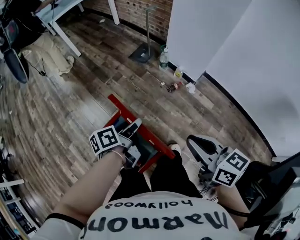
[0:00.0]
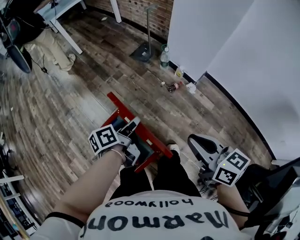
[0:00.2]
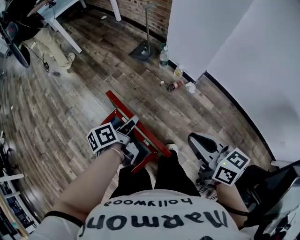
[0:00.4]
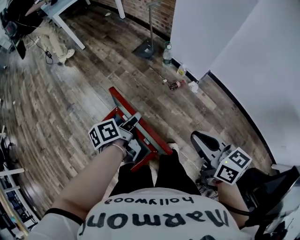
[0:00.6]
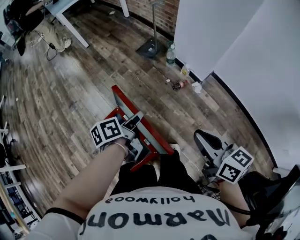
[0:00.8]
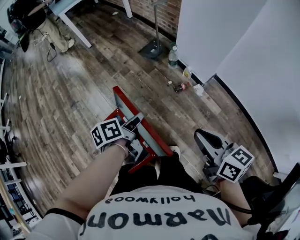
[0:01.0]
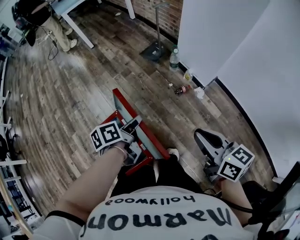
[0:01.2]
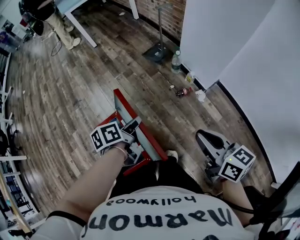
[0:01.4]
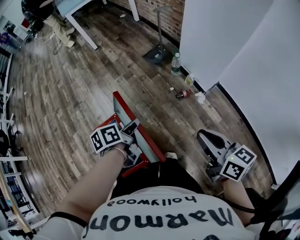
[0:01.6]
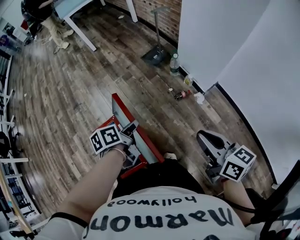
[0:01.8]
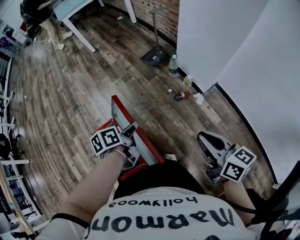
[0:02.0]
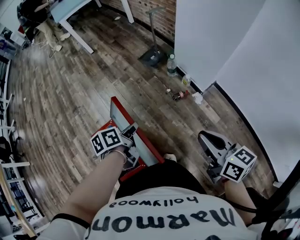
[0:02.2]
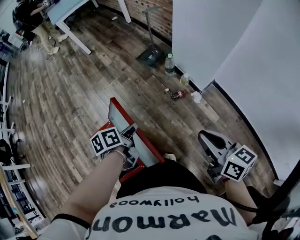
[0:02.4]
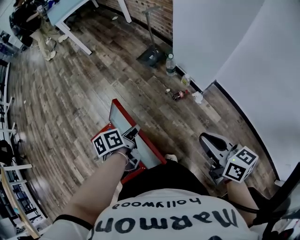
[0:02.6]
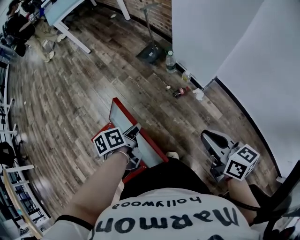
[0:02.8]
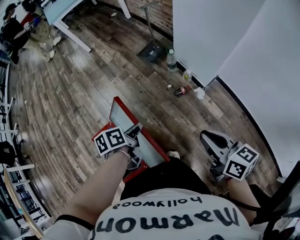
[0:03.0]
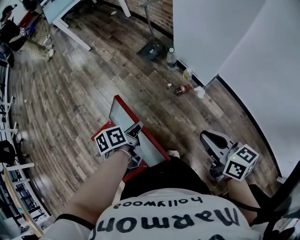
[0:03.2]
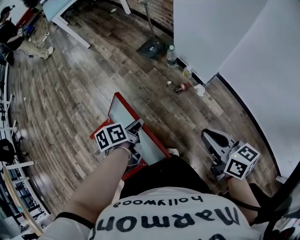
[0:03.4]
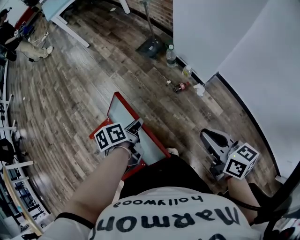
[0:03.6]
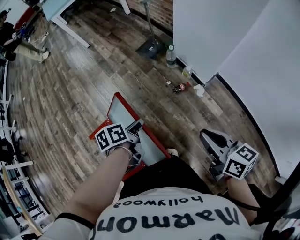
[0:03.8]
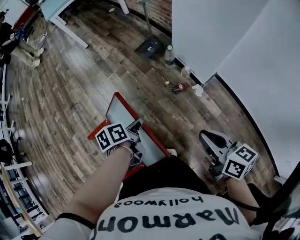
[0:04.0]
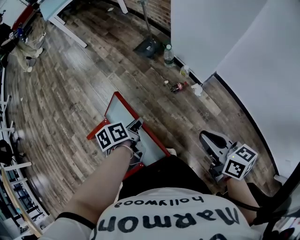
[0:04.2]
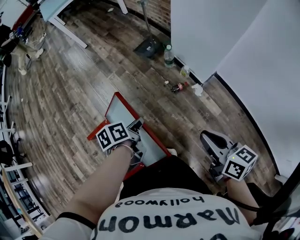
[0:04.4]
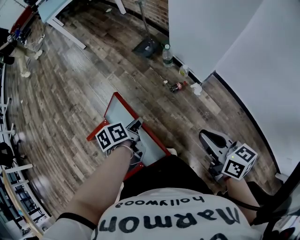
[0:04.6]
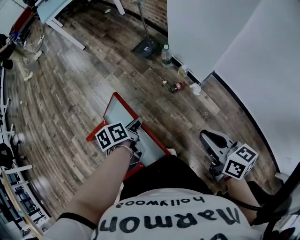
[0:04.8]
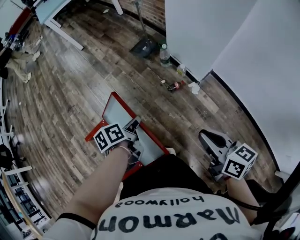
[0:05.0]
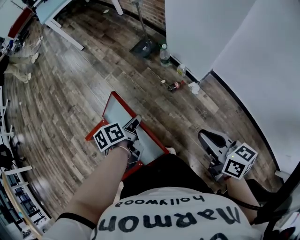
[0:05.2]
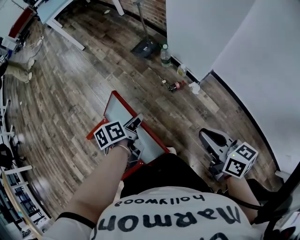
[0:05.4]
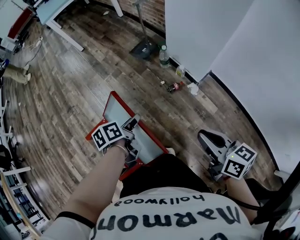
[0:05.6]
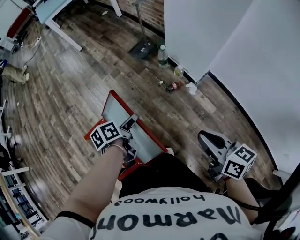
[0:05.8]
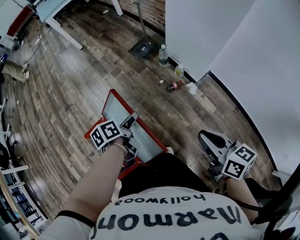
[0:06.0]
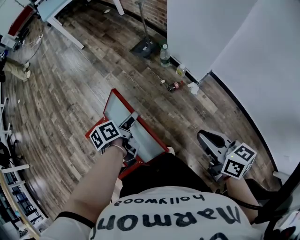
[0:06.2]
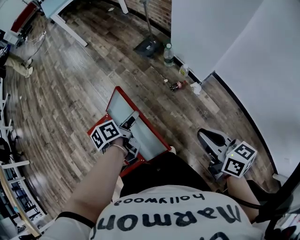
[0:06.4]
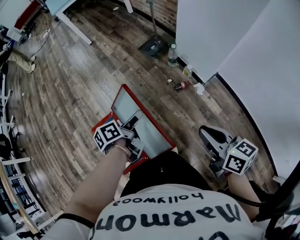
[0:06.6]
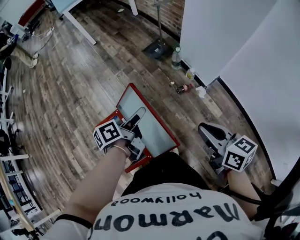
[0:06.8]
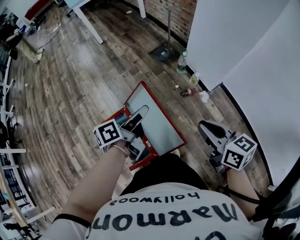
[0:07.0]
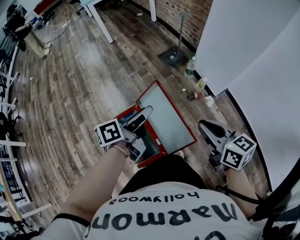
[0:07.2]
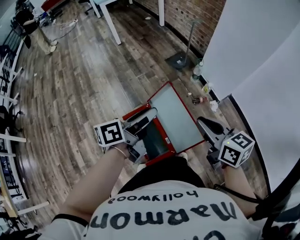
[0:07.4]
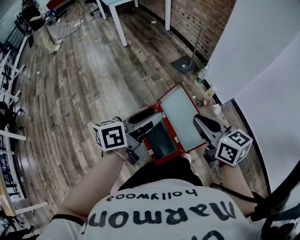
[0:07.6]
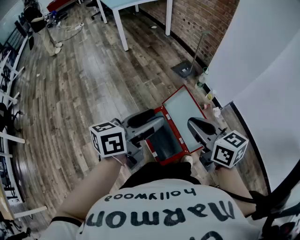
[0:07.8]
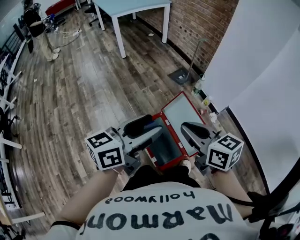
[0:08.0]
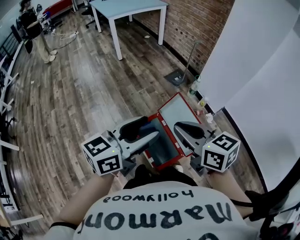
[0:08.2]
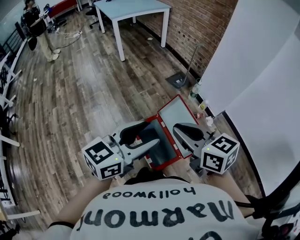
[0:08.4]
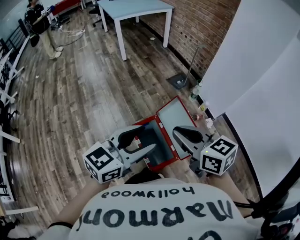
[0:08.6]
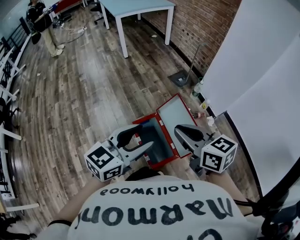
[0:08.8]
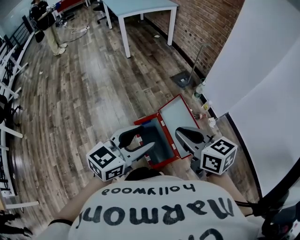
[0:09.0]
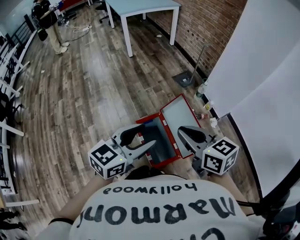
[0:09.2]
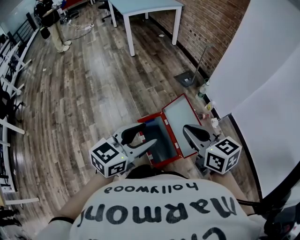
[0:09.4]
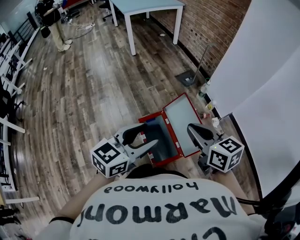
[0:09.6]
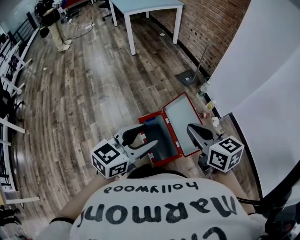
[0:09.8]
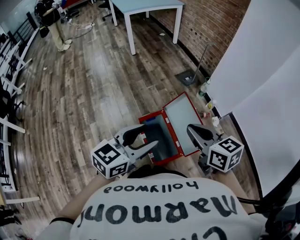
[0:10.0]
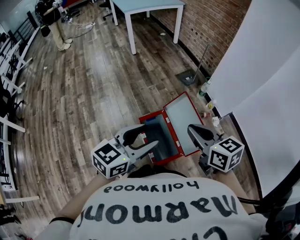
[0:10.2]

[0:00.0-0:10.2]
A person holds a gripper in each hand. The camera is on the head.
0:00.0 to 0:01.4: The left gripper heads to the right, covering some 5 cm. The right gripper heads to the right and forward, covering approximately 15 cm.
0:01.4 to 0:03.0: The left gripper moves approximately 5 cm. Meanwhile the right gripper travels to the right by approximately 5 cm.
0:03.0 to 0:04.4: The grippers move only a little.
0:04.4 to 0:05.8: The left gripper opens.
0:05.8 to 0:07.2: The right gripper is displaced to the left and upward by roughly 15 cm. Meanwhile the left gripper shifts approximately 20 cm upward and to the left, and tips its fingers upward by approximately 40 degrees.
0:07.2 to 0:08.8: The left gripper moves backward, to the left and upward, some 25 cm, and rolls clockwise, seen from behind, by some 60 degrees. Meanwhile the right gripper travels to the left and upward by some 25 cm.
0:08.8 to 0:10.2: The grippers make only small movements.

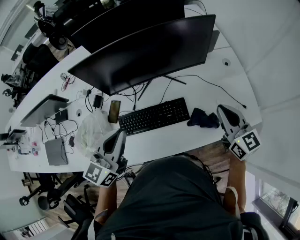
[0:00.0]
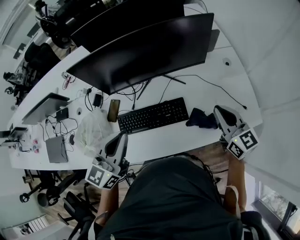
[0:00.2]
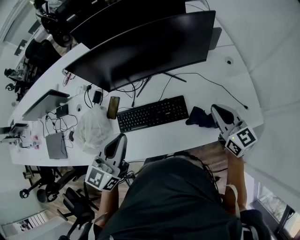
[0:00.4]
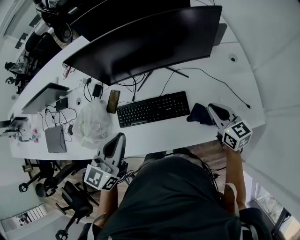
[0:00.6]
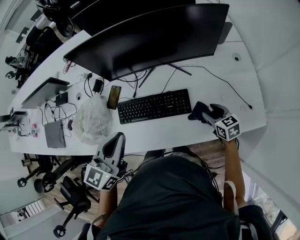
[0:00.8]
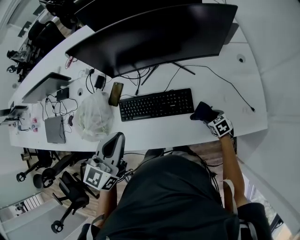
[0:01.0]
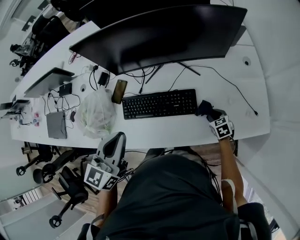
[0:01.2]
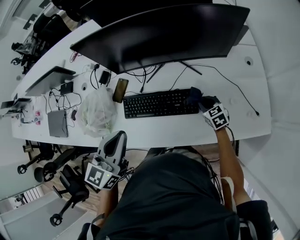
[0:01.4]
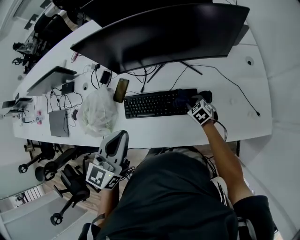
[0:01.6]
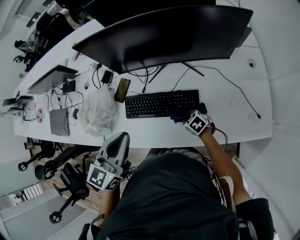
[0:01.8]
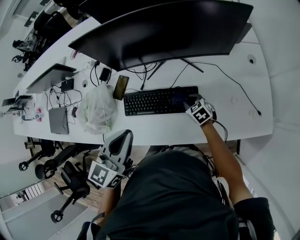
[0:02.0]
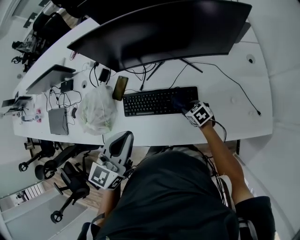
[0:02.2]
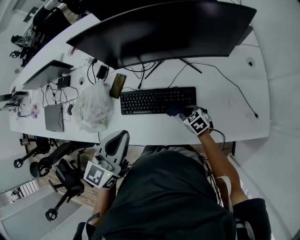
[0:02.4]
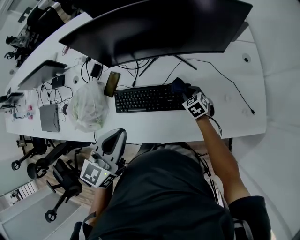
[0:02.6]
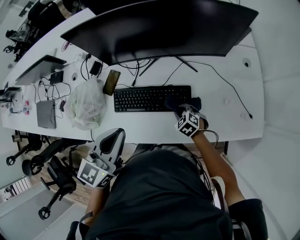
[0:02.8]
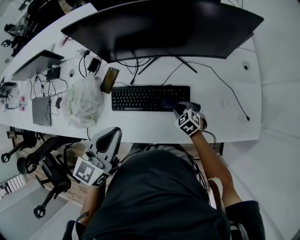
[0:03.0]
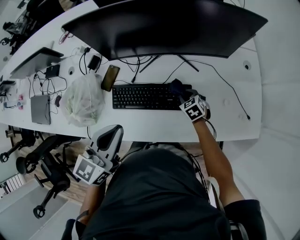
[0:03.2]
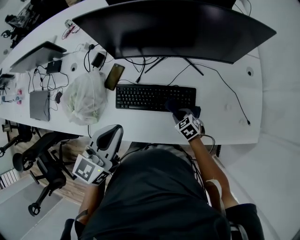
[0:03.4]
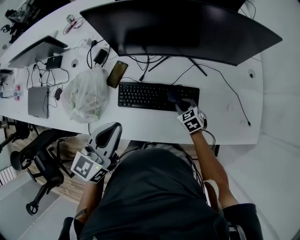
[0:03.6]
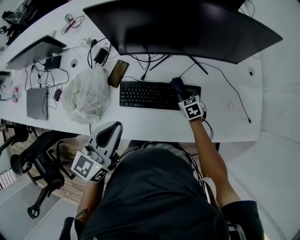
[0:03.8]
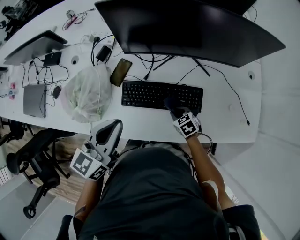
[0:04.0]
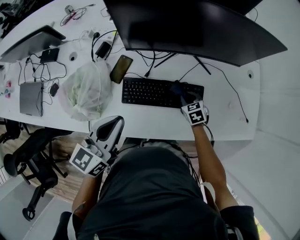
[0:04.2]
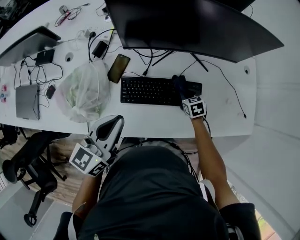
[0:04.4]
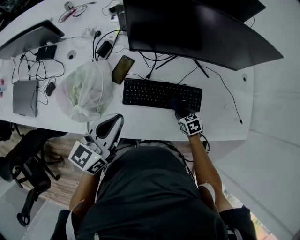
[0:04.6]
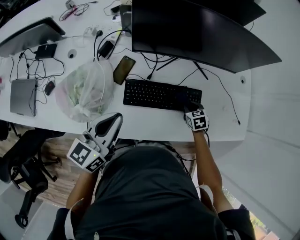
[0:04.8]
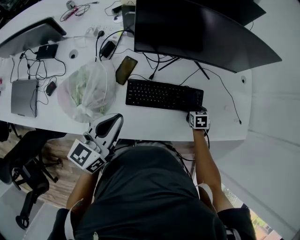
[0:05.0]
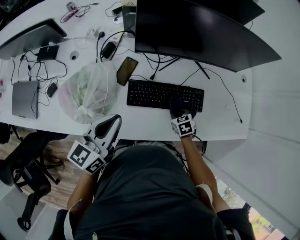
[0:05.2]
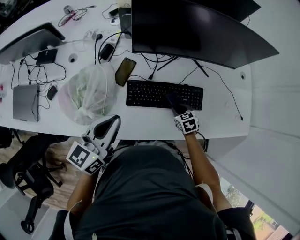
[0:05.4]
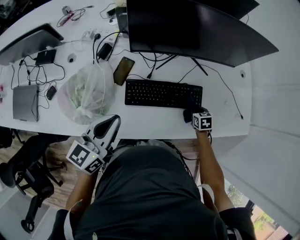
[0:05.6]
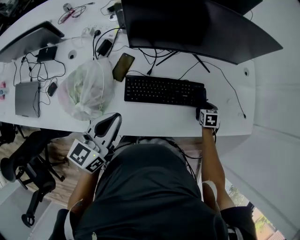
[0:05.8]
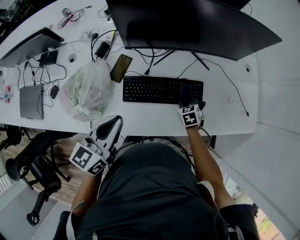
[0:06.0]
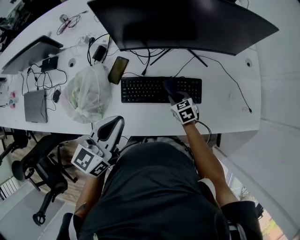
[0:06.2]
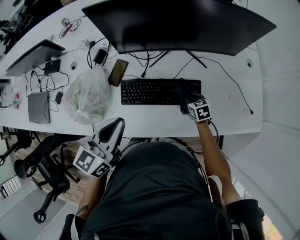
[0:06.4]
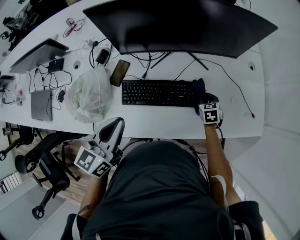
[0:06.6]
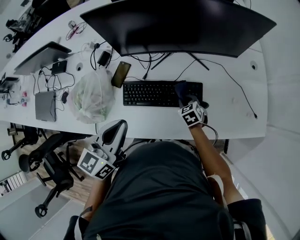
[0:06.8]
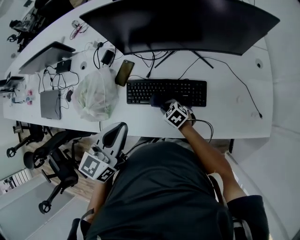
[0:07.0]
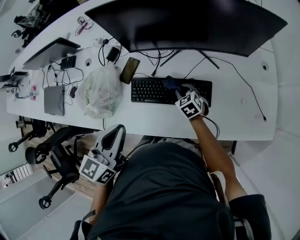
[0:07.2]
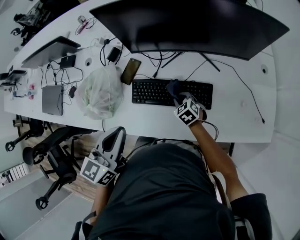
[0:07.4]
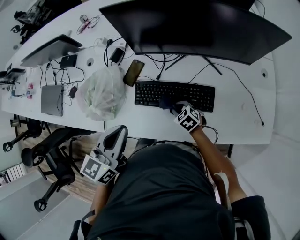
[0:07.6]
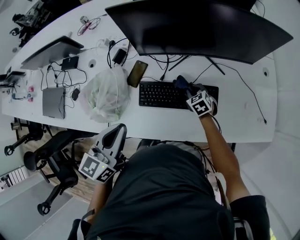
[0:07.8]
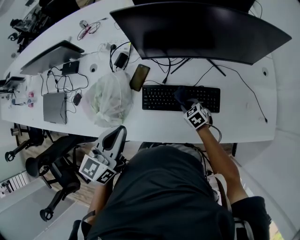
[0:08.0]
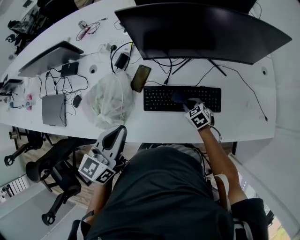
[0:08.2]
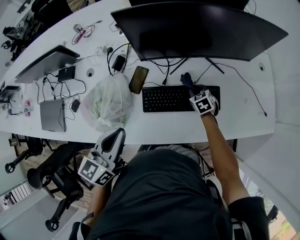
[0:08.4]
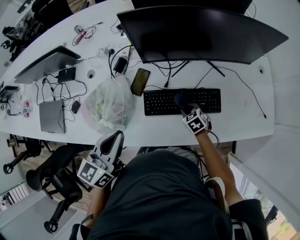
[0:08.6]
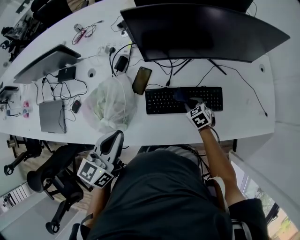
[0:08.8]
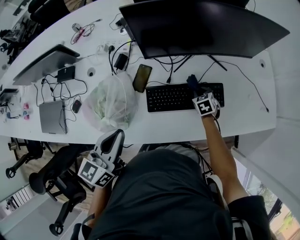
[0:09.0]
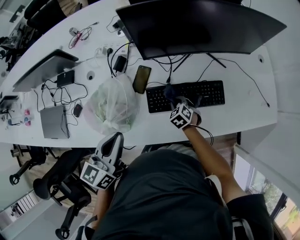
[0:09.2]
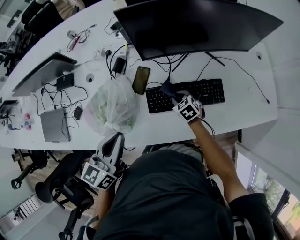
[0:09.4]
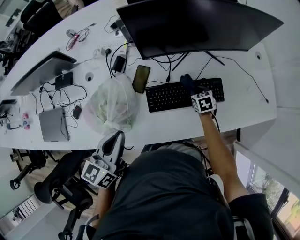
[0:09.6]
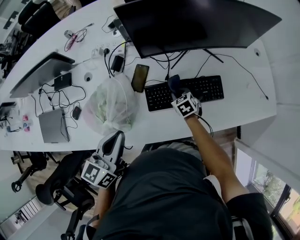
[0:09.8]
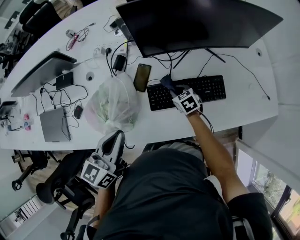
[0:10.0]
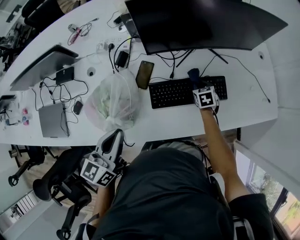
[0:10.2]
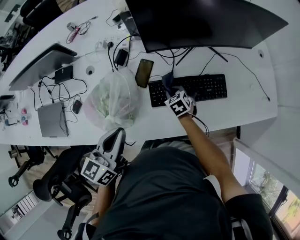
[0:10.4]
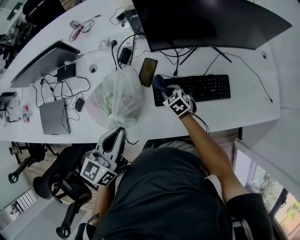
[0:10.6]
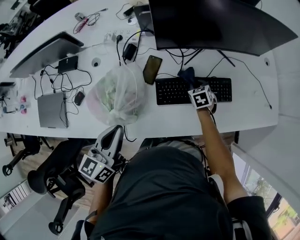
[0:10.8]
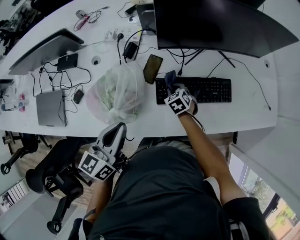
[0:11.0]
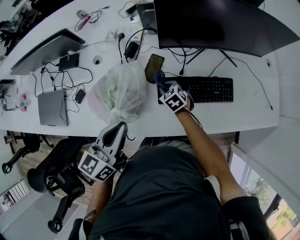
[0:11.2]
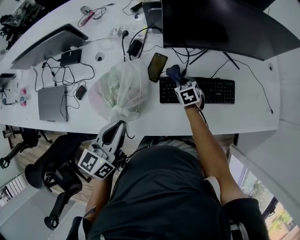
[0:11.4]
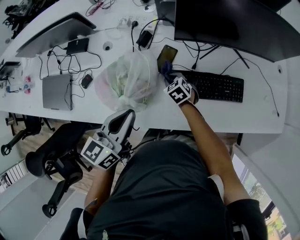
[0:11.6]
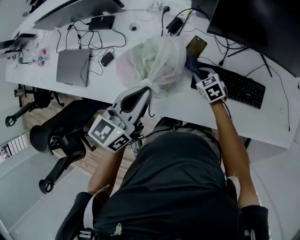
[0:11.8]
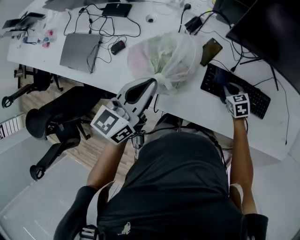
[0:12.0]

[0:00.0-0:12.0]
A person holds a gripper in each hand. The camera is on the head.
0:00.0 to 0:01.6: The right gripper moves up and down over approximately 35 cm, changing direction 2 times, points its fingers about 50 degrees further downward, and opens and closes again.
0:01.6 to 0:03.0: The right gripper moves forward and backward over roughly 10 cm, changing direction 4 times.
0:03.0 to 0:04.4: The left gripper heads to the left, covering roughly 10 cm; the right gripper is displaced forward by some 5 cm, goes to the left and returns, roughly 10 cm each way, and changes its angle by approximately 20 degrees.
0:06.0 to 0:07.6: The right gripper moves approximately 10 cm, and changes its angle by roughly 30 degrees.
0:07.6 to 0:09.0: The right gripper ends up about 10 cm from where it was, and changes its angle by roughly 40 degrees; the left gripper shifts by approximately 10 cm.
0:09.0 to 0:10.4: The right gripper goes left and right, some 15 cm each way, reversing 4 times.
0:10.4 to 0:12.0: The right gripper swings left and right, some 20 cm each way, with 5 reversals. Meanwhile the left gripper heads to the left, covering roughly 10 cm.

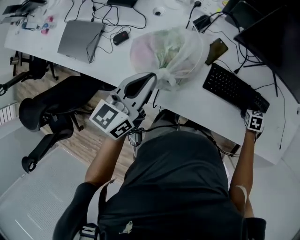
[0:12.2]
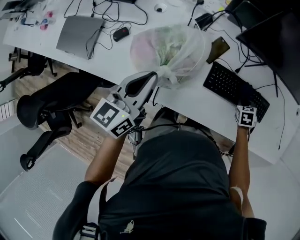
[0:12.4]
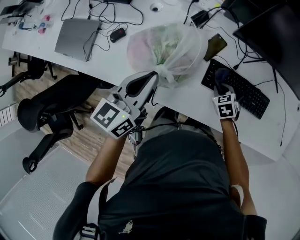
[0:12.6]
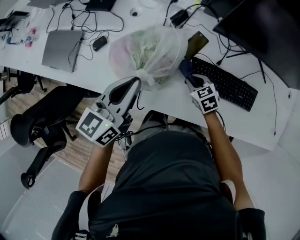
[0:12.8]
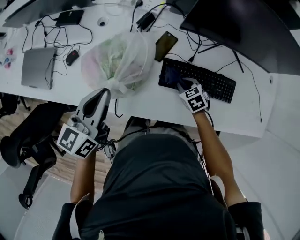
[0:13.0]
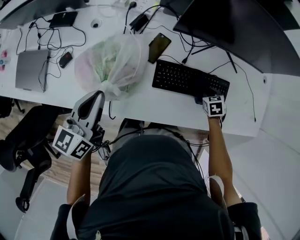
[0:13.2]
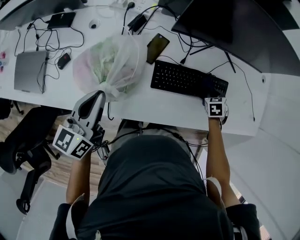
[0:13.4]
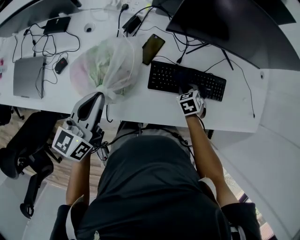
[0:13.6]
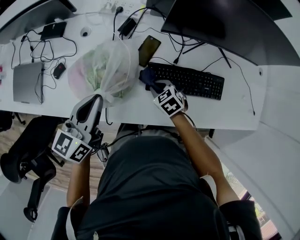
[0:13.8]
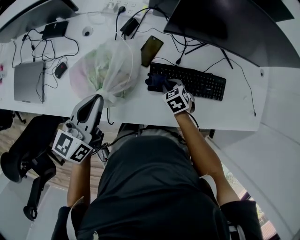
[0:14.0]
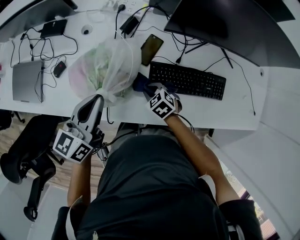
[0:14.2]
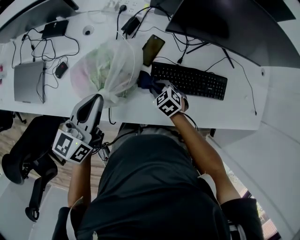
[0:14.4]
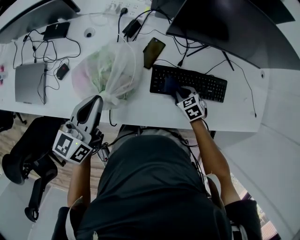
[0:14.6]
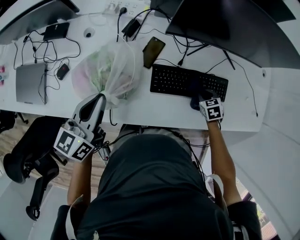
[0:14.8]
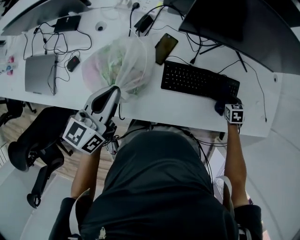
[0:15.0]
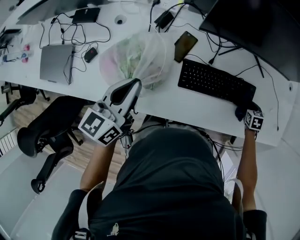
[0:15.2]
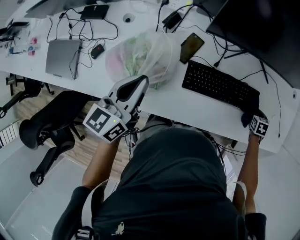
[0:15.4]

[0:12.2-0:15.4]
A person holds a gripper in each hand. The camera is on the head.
0:12.2 to 0:13.8: The left gripper ends up about 5 cm from where it was; the right gripper ends up roughly 25 cm from where it was, and changes its angle by approximately 30 degrees.
0:13.8 to 0:15.4: The right gripper changes place by some 40 cm, and rotates about 40 degrees.
